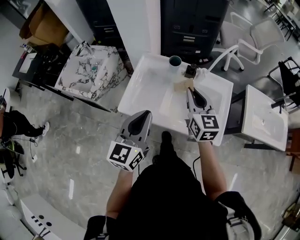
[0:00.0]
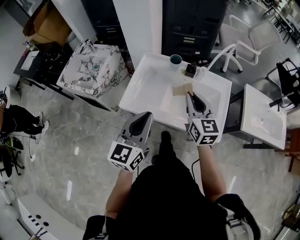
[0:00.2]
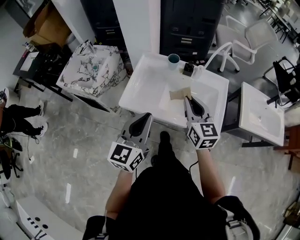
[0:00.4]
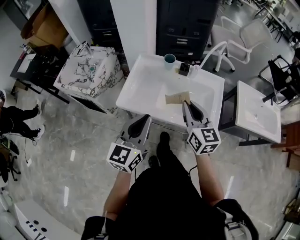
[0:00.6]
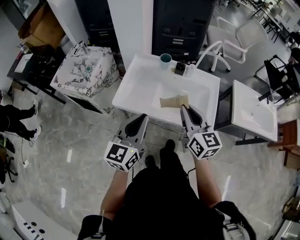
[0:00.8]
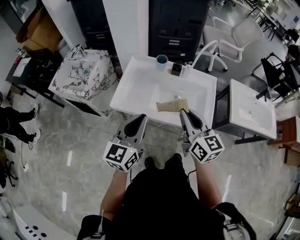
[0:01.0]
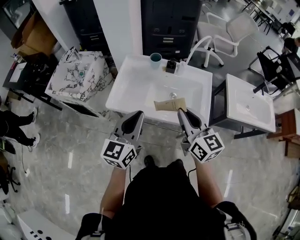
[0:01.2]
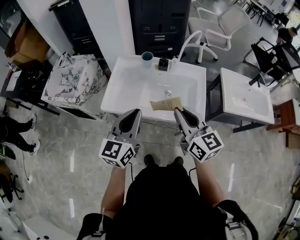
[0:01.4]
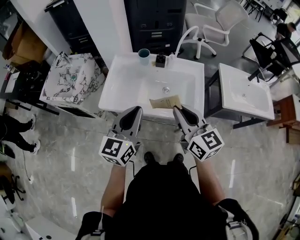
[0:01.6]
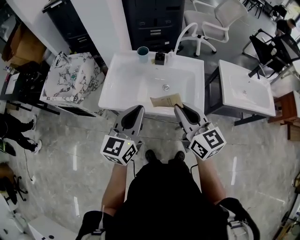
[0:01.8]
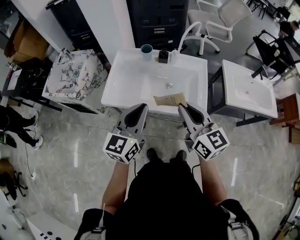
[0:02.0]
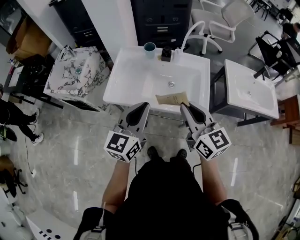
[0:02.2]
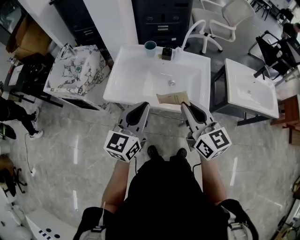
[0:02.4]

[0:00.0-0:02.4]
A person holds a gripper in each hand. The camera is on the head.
0:00.0 to 0:01.2: The right gripper travels backward by approximately 20 cm, while the left gripper heads backward, covering about 10 cm.
0:01.2 to 0:02.4: There are only small adjustments of the grippers.

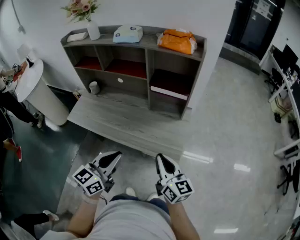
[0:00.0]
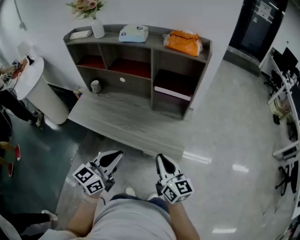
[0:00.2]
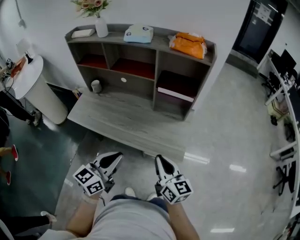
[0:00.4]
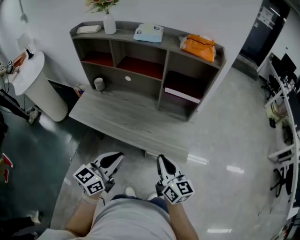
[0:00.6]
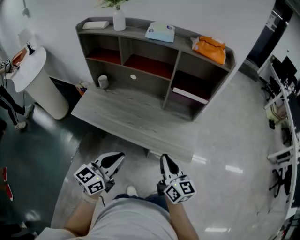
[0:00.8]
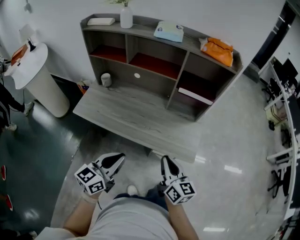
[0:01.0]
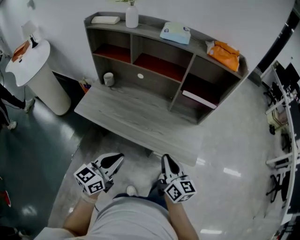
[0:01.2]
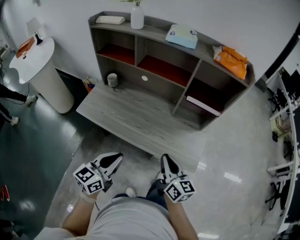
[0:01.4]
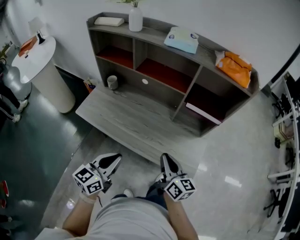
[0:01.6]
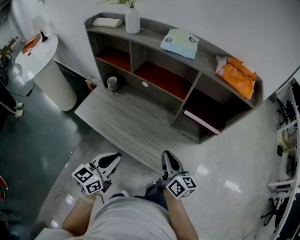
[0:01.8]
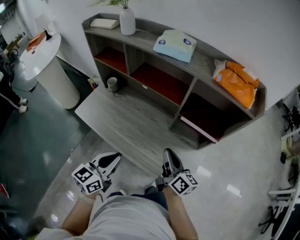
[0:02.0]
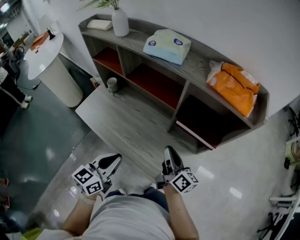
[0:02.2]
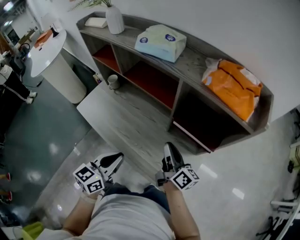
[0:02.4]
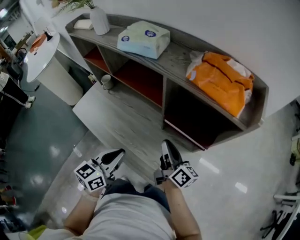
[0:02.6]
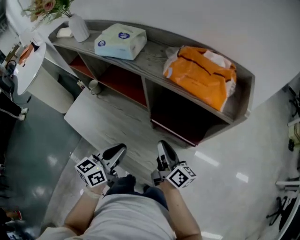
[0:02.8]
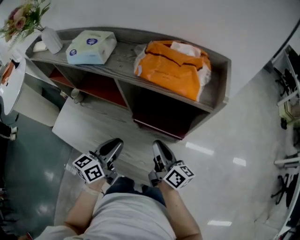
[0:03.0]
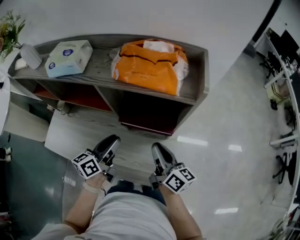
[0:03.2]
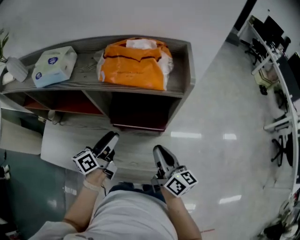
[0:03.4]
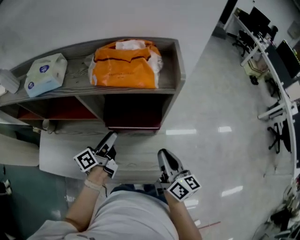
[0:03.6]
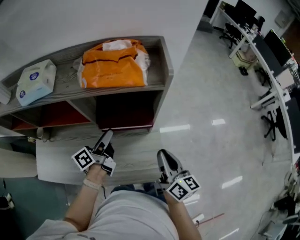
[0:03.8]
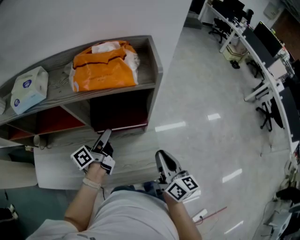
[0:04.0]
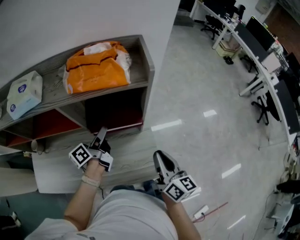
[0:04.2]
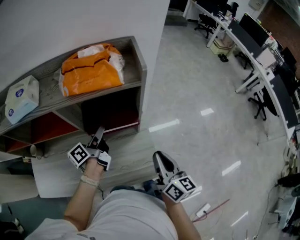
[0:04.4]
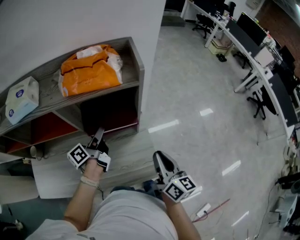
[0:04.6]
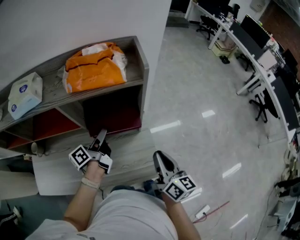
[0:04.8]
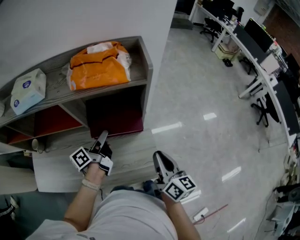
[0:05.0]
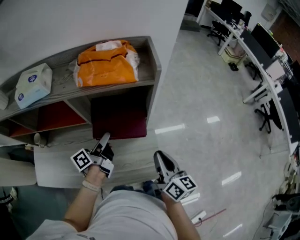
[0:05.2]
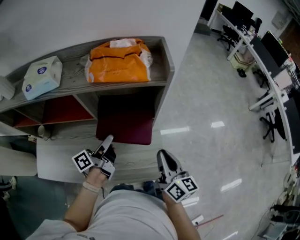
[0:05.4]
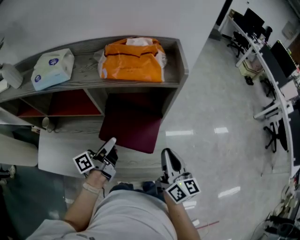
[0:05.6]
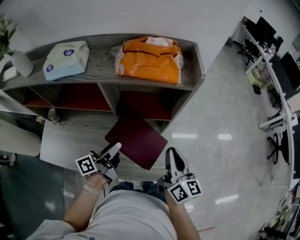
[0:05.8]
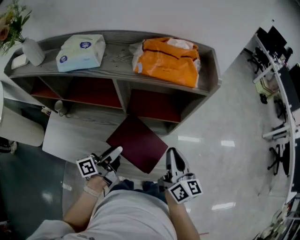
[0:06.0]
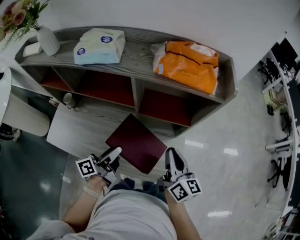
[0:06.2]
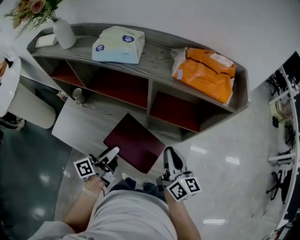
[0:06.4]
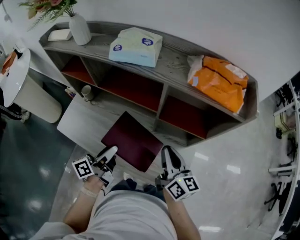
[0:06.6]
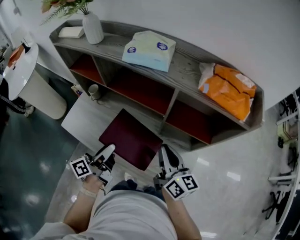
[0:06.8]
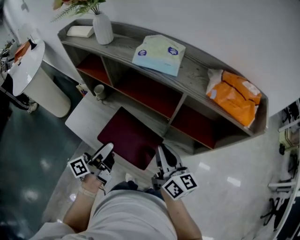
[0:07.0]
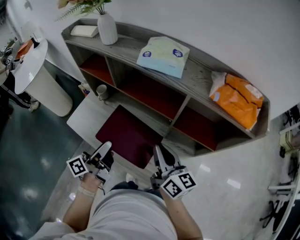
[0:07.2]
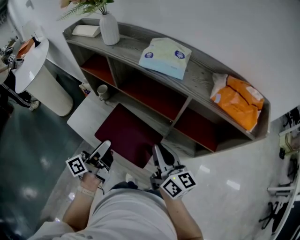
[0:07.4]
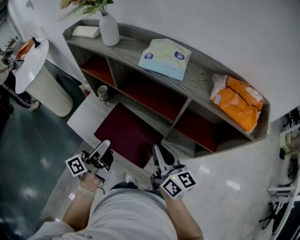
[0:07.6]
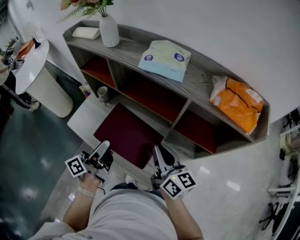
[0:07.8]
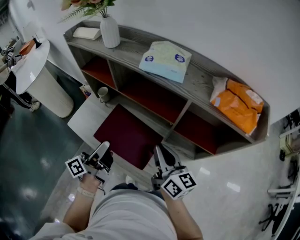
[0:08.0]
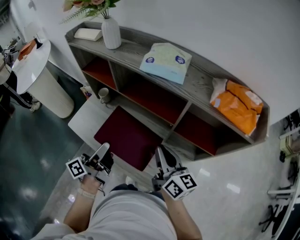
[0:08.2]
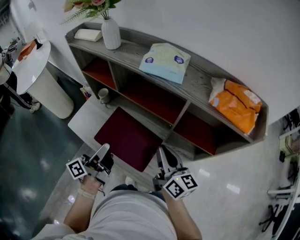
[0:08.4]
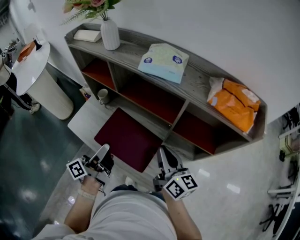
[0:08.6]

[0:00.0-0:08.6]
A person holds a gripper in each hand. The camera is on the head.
0:00.0 to 0:01.4: The grippers both shift to the left by some 15 cm.
0:01.4 to 0:02.8: The grippers both shift forward and to the right by about 30 cm. The right gripper turns by roughly 30 degrees.
0:02.8 to 0:04.4: The left gripper moves about 20 cm, changes its angle by some 50 degrees, and opens its fingers; the right gripper moves some 20 cm, and turns by approximately 50 degrees.
0:04.4 to 0:05.8: The right gripper shifts by roughly 5 cm. Meanwhile the left gripper travels backward by roughly 15 cm.
0:05.8 to 0:07.2: The left gripper moves some 25 cm, and rotates roughly 30 degrees; the right gripper changes place by some 25 cm, and changes its angle by some 40 degrees.
0:07.2 to 0:08.6: There are only small adjustments of the grippers.

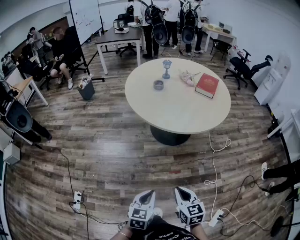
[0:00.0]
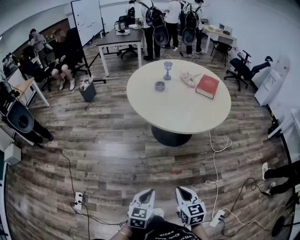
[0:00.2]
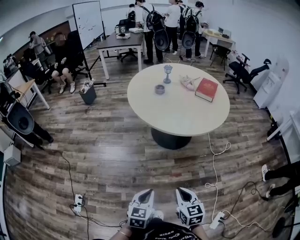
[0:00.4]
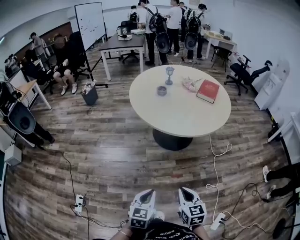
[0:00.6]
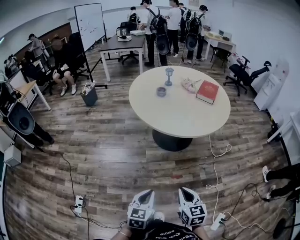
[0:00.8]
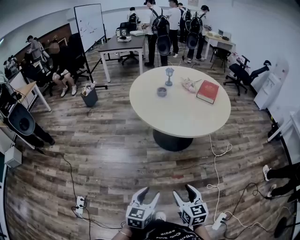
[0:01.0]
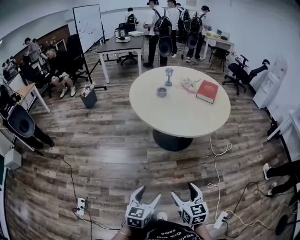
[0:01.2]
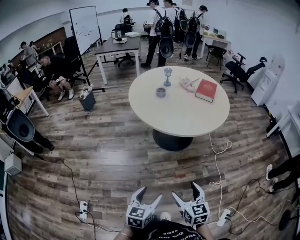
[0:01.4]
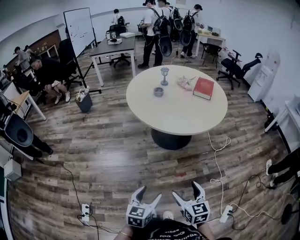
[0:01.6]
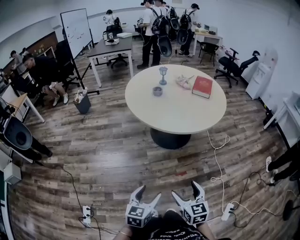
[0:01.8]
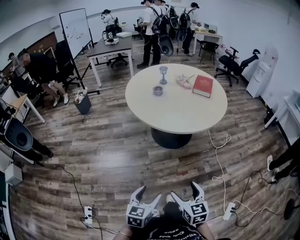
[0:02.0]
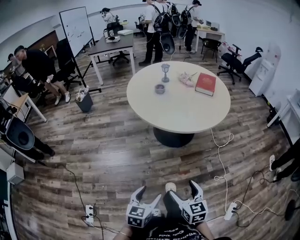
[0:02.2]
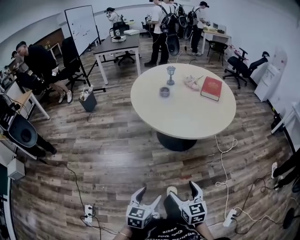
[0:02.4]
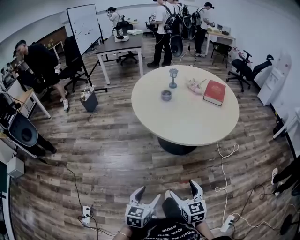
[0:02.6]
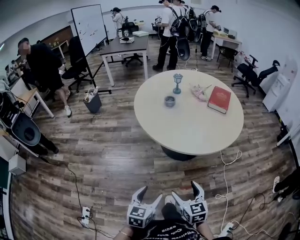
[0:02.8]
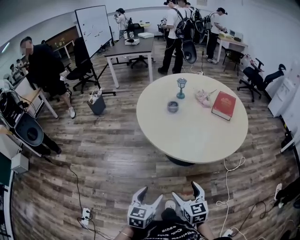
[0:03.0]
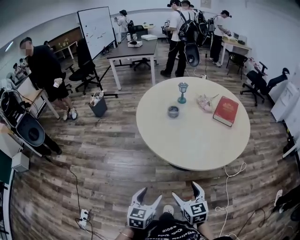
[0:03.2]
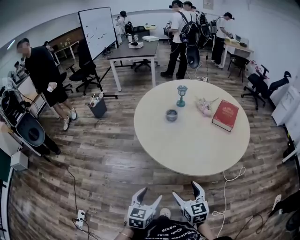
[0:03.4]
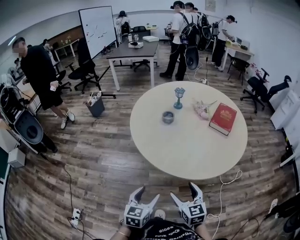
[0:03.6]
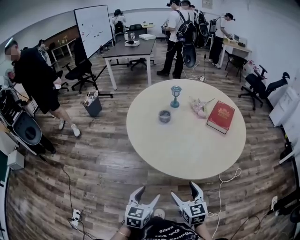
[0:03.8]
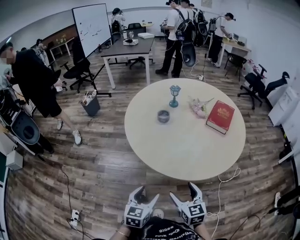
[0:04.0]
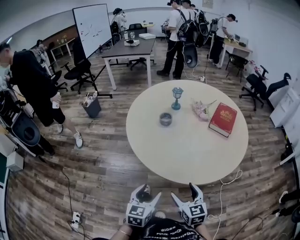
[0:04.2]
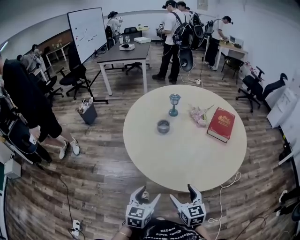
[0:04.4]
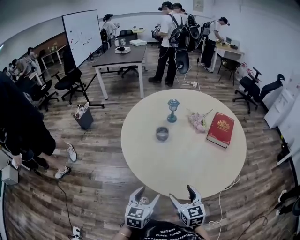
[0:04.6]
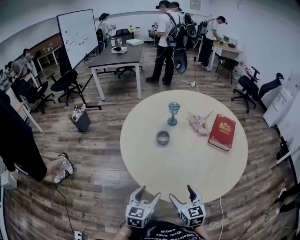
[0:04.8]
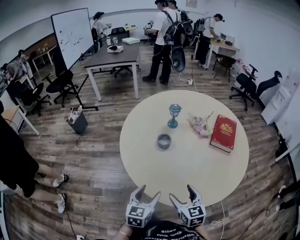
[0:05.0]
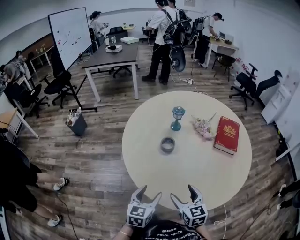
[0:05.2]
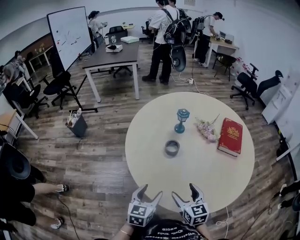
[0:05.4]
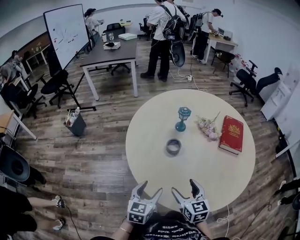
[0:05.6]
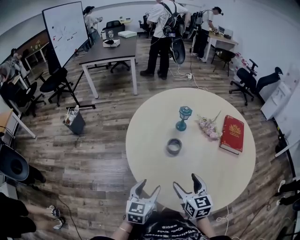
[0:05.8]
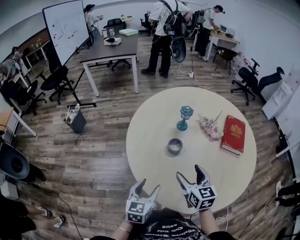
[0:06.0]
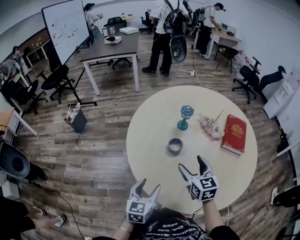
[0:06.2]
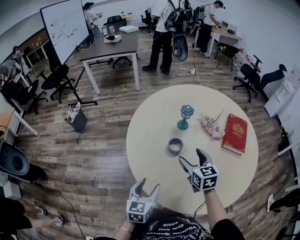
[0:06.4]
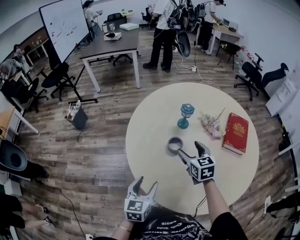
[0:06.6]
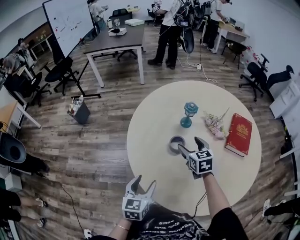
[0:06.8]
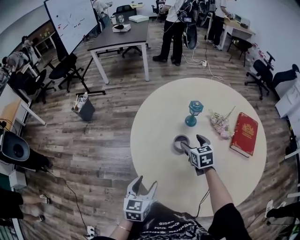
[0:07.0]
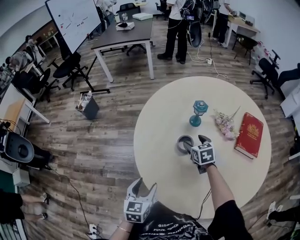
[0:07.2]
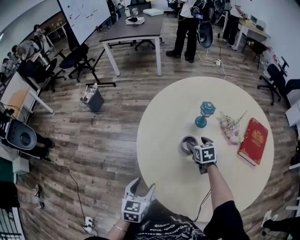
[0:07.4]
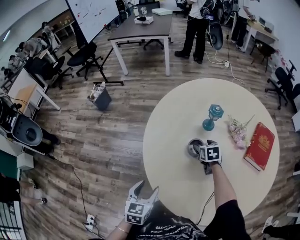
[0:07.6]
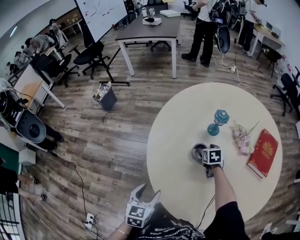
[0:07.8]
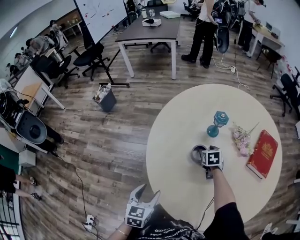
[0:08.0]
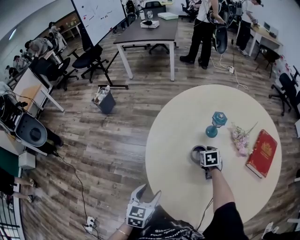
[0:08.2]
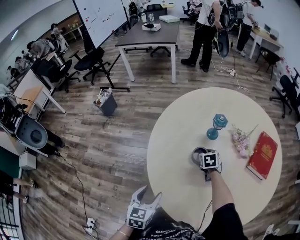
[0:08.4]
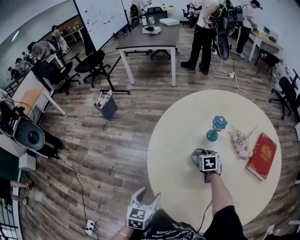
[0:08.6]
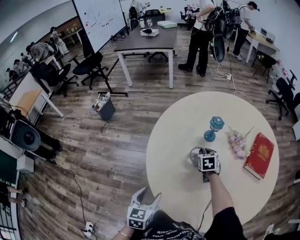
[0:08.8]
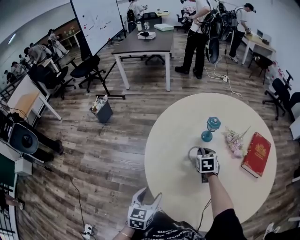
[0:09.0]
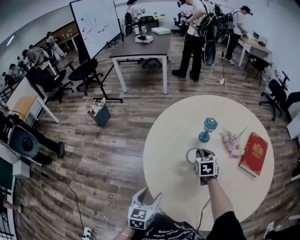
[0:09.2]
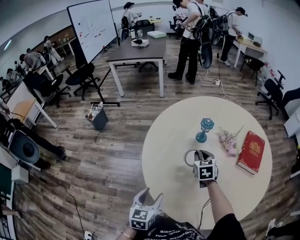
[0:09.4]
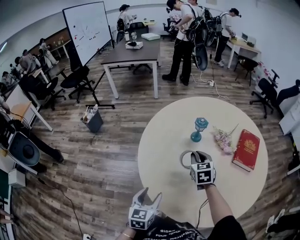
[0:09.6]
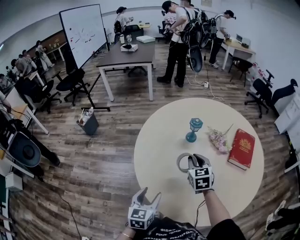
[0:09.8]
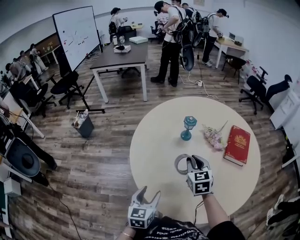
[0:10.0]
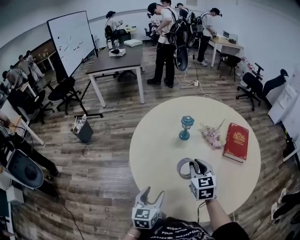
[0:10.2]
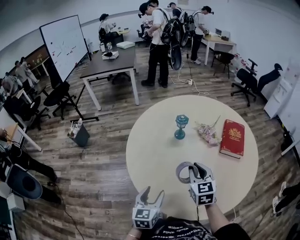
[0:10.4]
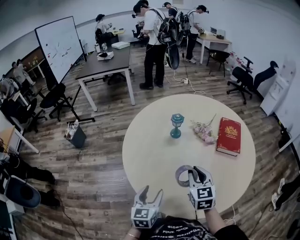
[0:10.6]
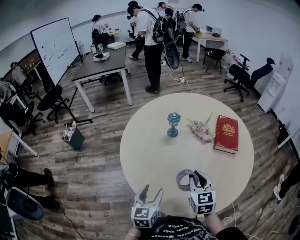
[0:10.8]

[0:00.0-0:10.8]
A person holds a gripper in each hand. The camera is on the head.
0:00.0 to 0:01.6: Both grippers travel together to the left, roughly 5 cm. The left gripper opens its fingers; the right gripper opens up.
0:01.6 to 0:03.0: Both grippers travel together forward, roughly 20 cm.
0:03.0 to 0:04.6: The grippers both shift forward by some 25 cm.
0:04.6 to 0:06.2: The right gripper shifts approximately 30 cm forward; the left gripper goes approximately 25 cm forward and to the left.
0:06.2 to 0:07.8: The left gripper ends up about 5 cm from where it was, while the right gripper moves downward and forward, some 30 cm, and tilts its fingers roughly 30 degrees downward.
0:07.8 to 0:09.2: The right gripper goes approximately 10 cm upward, and closes.
0:09.2 to 0:10.8: The right gripper travels backward and upward by approximately 25 cm, and changes its angle by approximately 20 degrees. The left gripper shifts approximately 10 cm to the right.

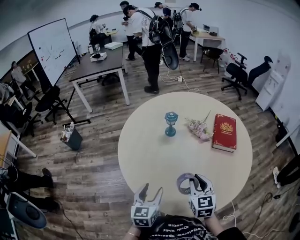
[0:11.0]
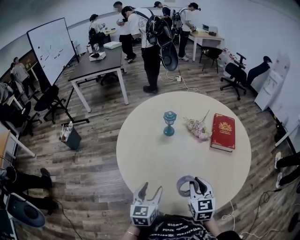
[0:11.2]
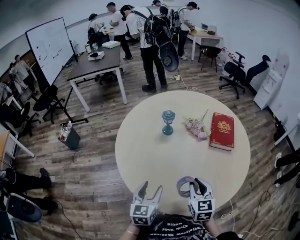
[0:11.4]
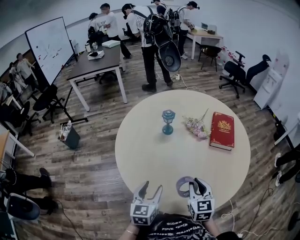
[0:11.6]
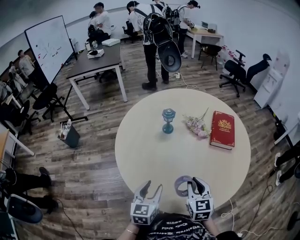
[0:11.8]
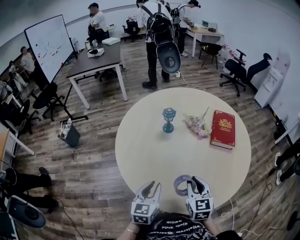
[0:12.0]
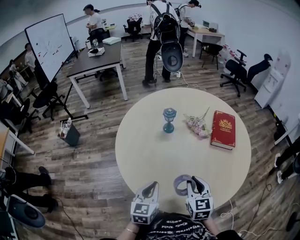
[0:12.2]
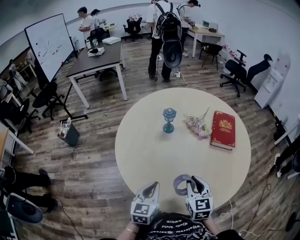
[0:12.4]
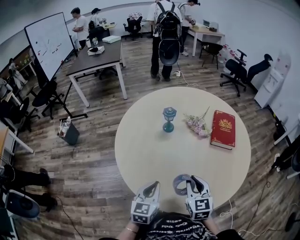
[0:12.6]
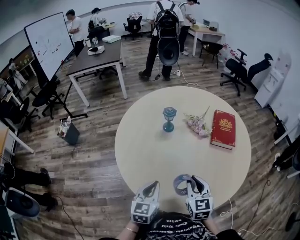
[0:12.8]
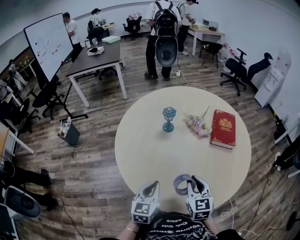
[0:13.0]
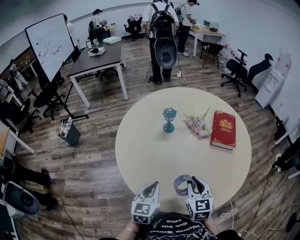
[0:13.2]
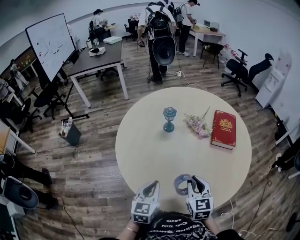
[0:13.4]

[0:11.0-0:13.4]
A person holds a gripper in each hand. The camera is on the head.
0:11.0 to 0:12.2: The left gripper closes.
0:12.2 to 0:13.4: Neither gripper changes place.
